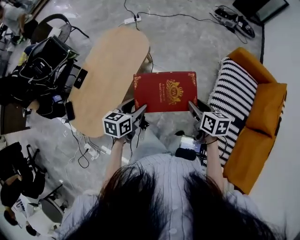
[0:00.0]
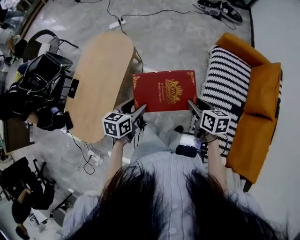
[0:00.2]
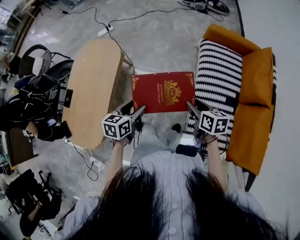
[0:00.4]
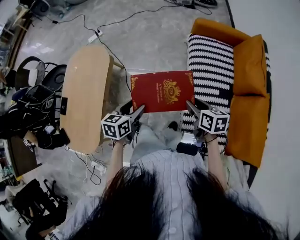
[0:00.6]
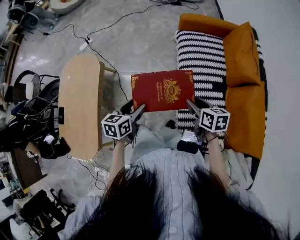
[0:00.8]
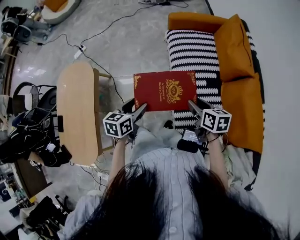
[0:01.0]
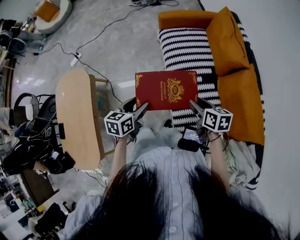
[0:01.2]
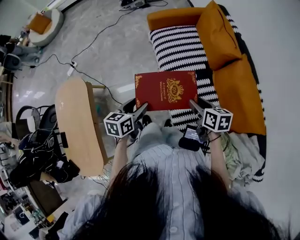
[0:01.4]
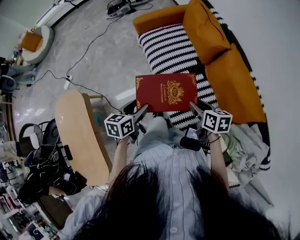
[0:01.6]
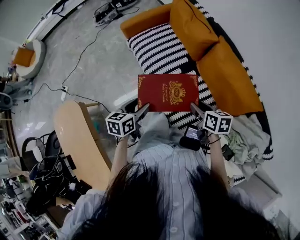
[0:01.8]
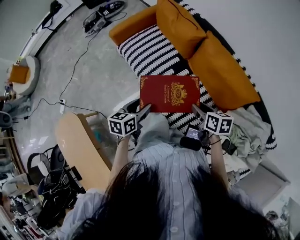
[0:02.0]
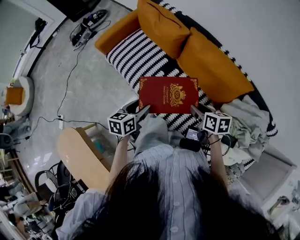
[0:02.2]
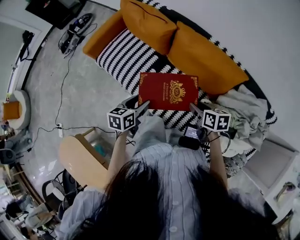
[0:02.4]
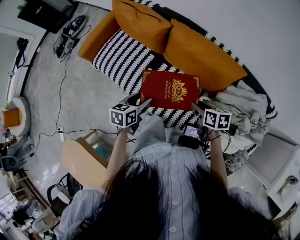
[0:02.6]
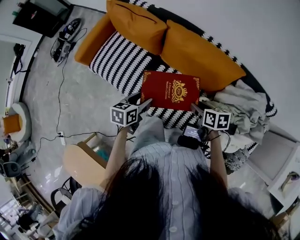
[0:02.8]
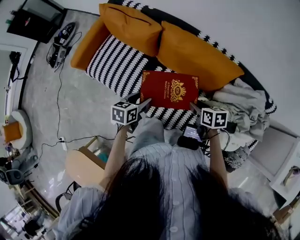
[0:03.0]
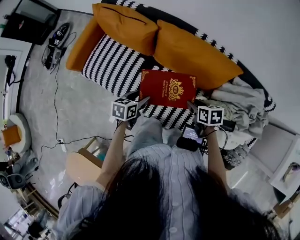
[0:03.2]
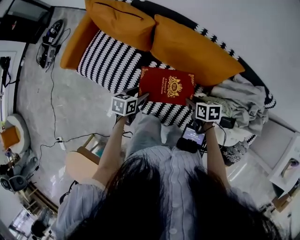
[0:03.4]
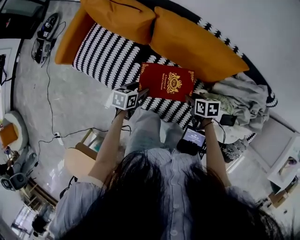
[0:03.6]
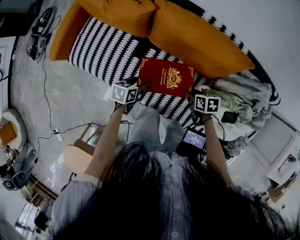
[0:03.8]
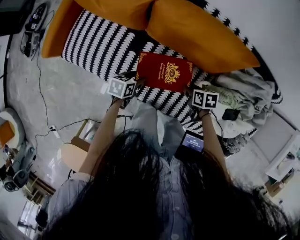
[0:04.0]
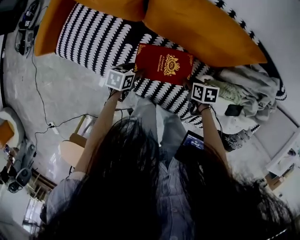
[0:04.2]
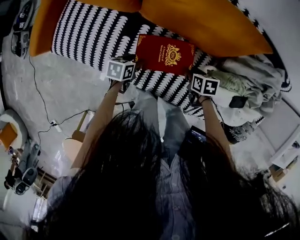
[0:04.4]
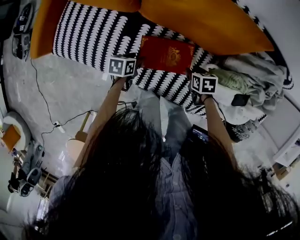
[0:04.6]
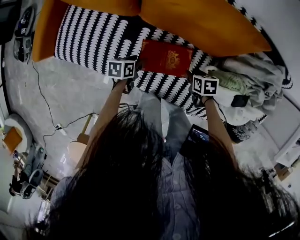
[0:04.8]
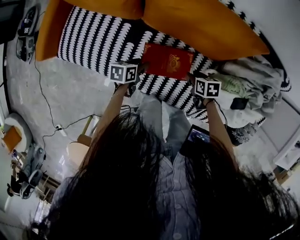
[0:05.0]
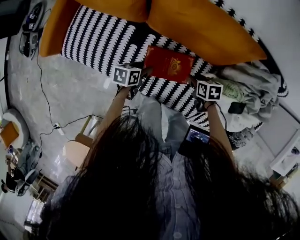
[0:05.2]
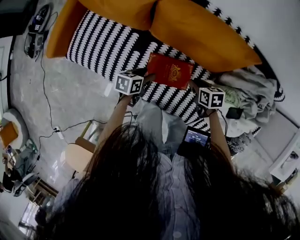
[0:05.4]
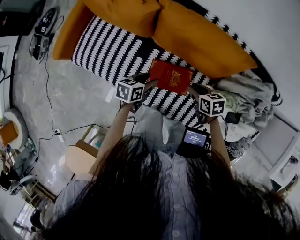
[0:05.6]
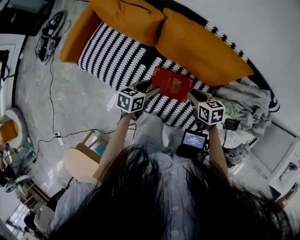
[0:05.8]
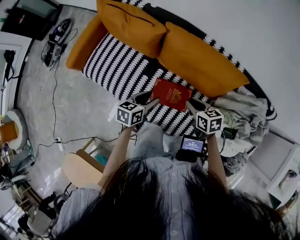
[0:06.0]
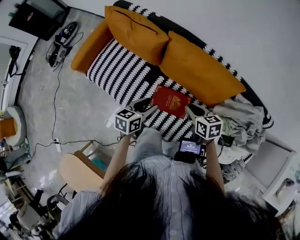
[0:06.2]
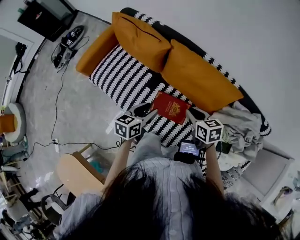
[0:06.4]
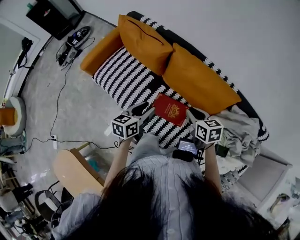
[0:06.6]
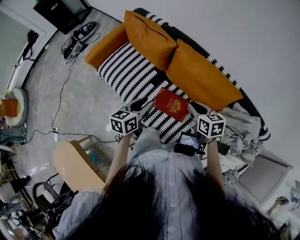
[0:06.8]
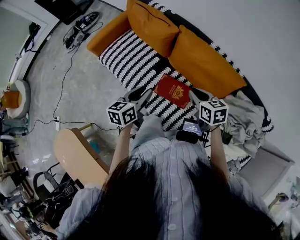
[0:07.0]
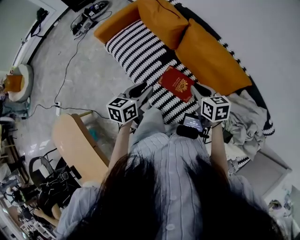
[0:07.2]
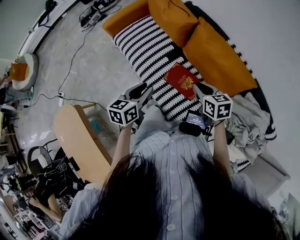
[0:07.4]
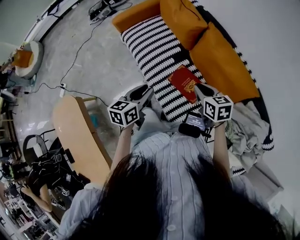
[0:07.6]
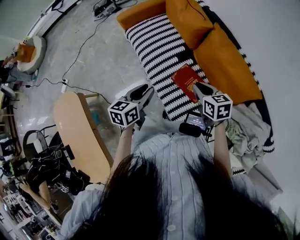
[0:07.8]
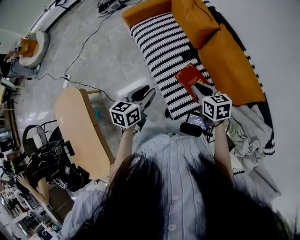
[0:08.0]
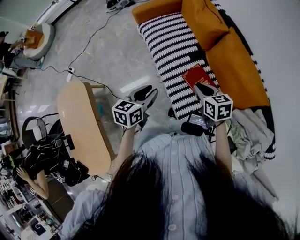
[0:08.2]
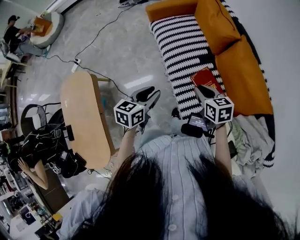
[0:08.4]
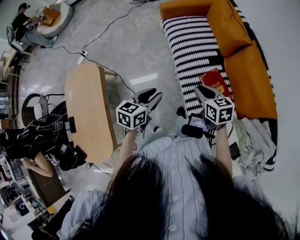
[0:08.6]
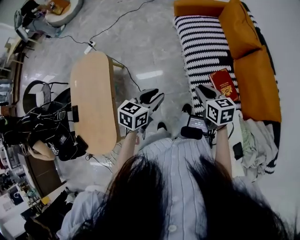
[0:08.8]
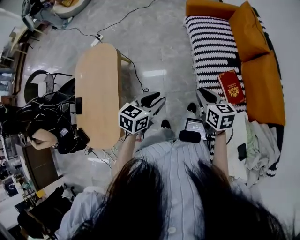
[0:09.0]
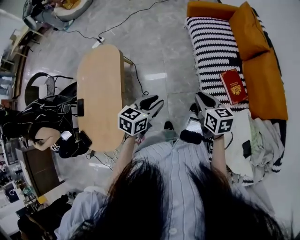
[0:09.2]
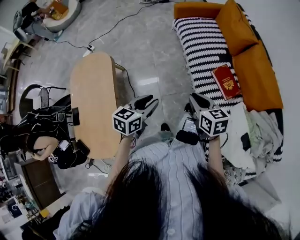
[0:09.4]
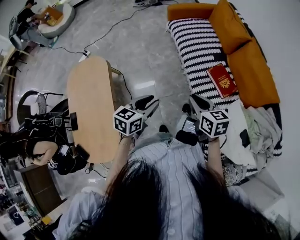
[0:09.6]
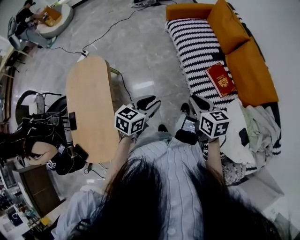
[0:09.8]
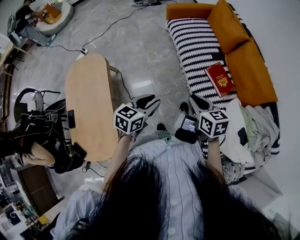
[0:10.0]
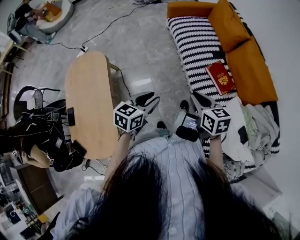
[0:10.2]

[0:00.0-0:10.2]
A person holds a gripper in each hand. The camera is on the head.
0:00.0 to 0:01.4: The right gripper ends up some 40 cm from where it was, and turns by some 40 degrees, while the left gripper changes place by about 35 cm, and swivels some 40 degrees.
0:01.4 to 0:03.0: The right gripper shifts by some 25 cm, and turns by about 40 degrees; the left gripper shifts by some 30 cm, and swivels roughly 50 degrees.
0:03.0 to 0:04.4: Both grippers travel together downward, approximately 25 cm. The left gripper rotates some 20 degrees.
0:04.4 to 0:05.8: The grippers both shift upward by roughly 20 cm. The right gripper rotates roughly 30 degrees.
0:05.8 to 0:07.2: The left gripper shifts some 20 cm upward and backward, and swivels roughly 40 degrees, while the right gripper travels upward by about 15 cm, and swivels roughly 20 degrees.
0:07.2 to 0:08.8: The right gripper shifts by approximately 30 cm, and changes its angle by some 30 degrees. Meanwhile the left gripper shifts by some 30 cm, and swivels approximately 20 degrees.
0:08.8 to 0:10.2: Both grippers travel together backward and to the left, approximately 15 cm.

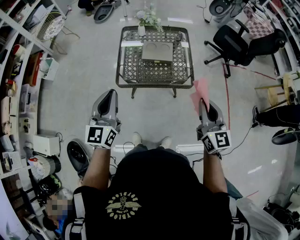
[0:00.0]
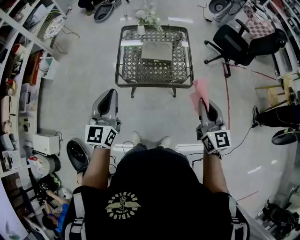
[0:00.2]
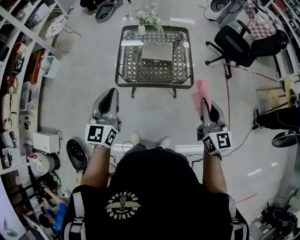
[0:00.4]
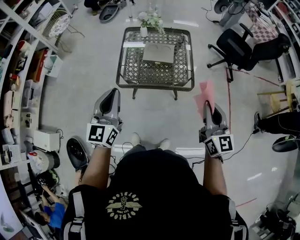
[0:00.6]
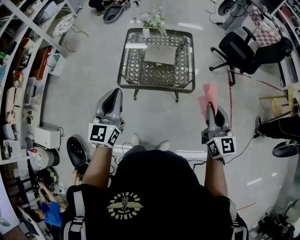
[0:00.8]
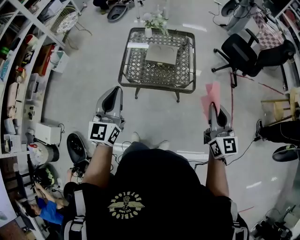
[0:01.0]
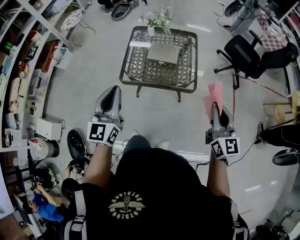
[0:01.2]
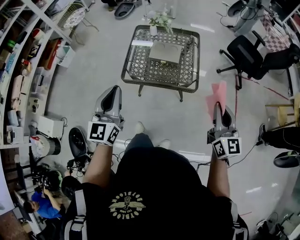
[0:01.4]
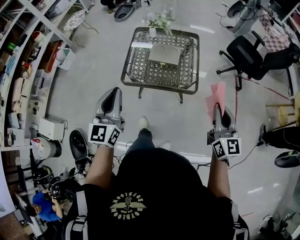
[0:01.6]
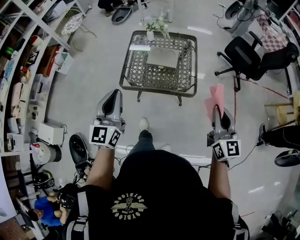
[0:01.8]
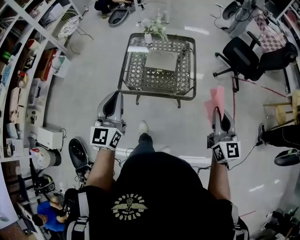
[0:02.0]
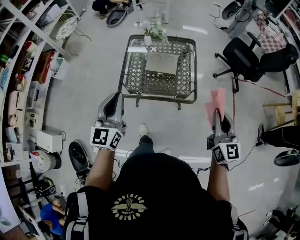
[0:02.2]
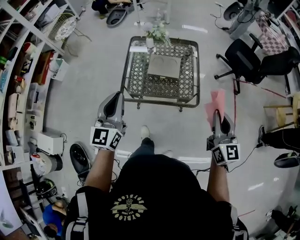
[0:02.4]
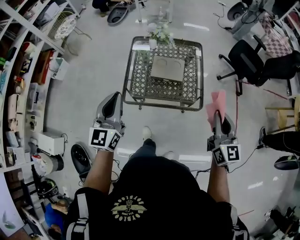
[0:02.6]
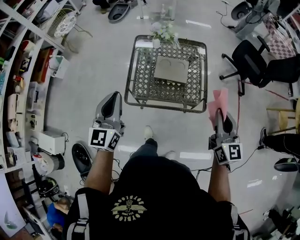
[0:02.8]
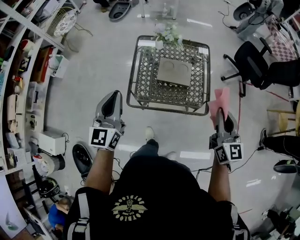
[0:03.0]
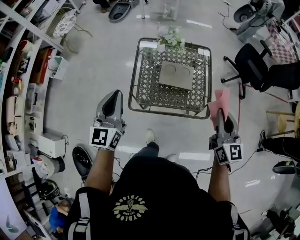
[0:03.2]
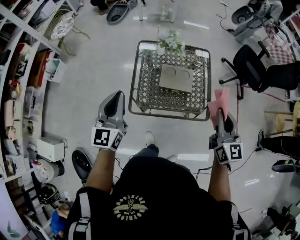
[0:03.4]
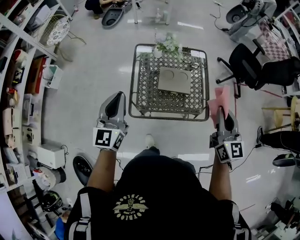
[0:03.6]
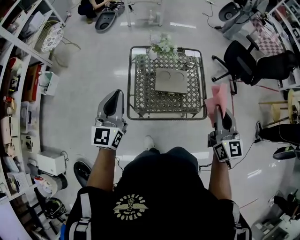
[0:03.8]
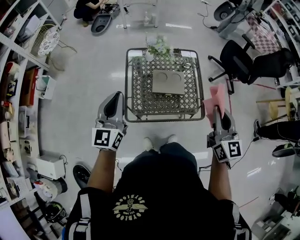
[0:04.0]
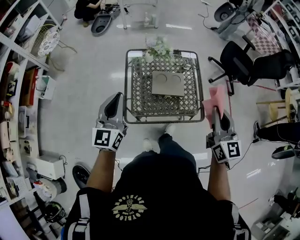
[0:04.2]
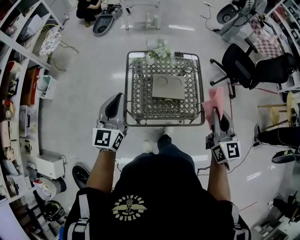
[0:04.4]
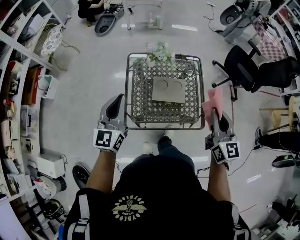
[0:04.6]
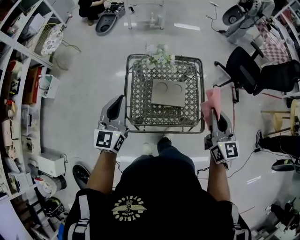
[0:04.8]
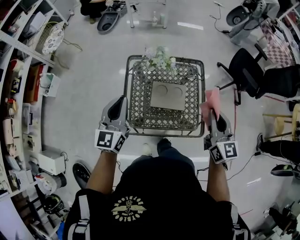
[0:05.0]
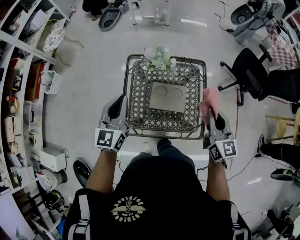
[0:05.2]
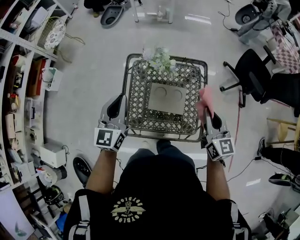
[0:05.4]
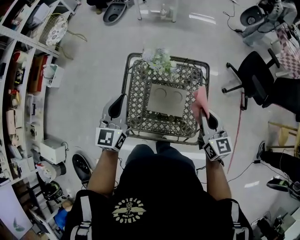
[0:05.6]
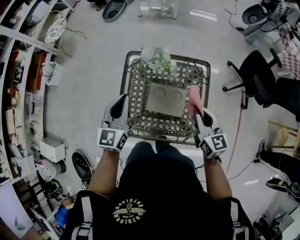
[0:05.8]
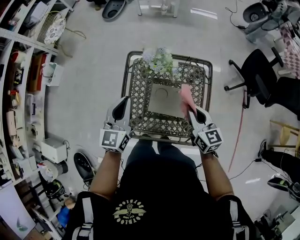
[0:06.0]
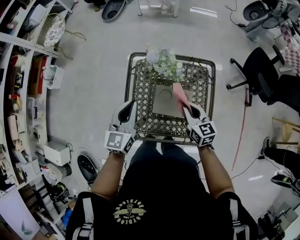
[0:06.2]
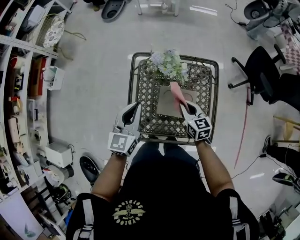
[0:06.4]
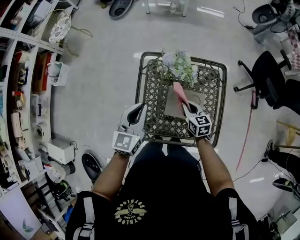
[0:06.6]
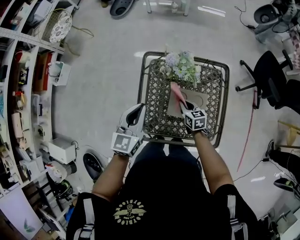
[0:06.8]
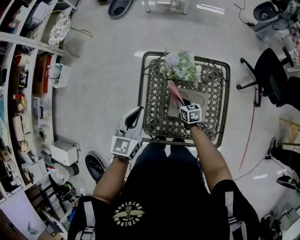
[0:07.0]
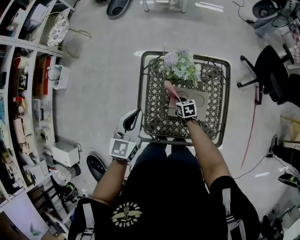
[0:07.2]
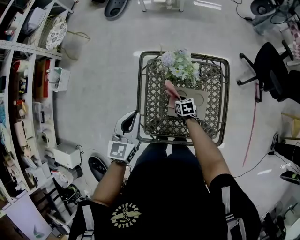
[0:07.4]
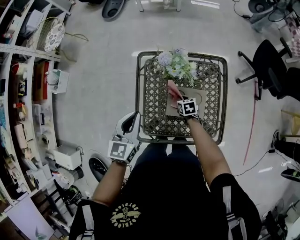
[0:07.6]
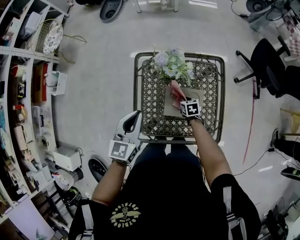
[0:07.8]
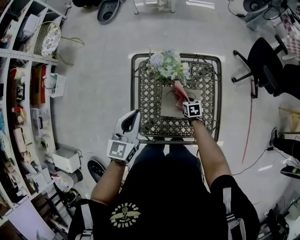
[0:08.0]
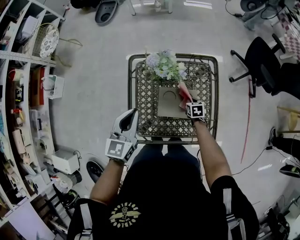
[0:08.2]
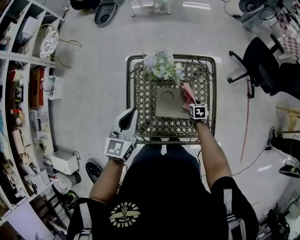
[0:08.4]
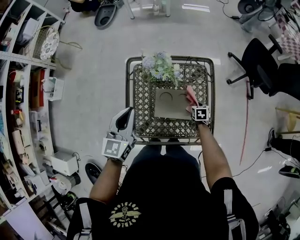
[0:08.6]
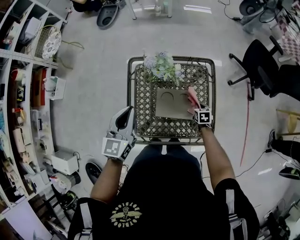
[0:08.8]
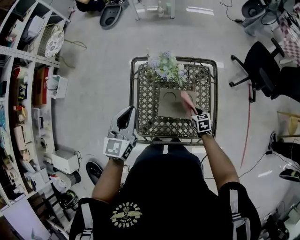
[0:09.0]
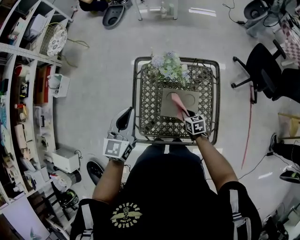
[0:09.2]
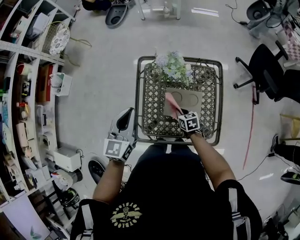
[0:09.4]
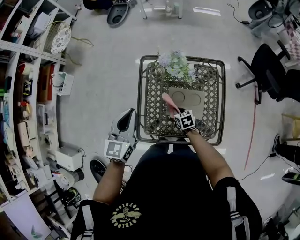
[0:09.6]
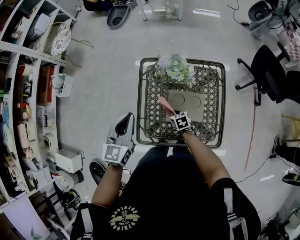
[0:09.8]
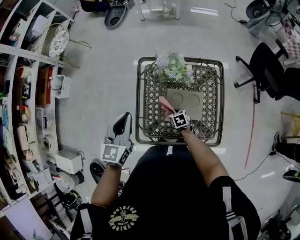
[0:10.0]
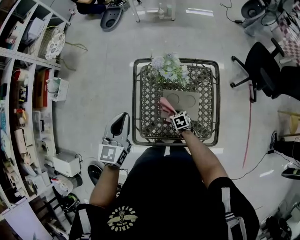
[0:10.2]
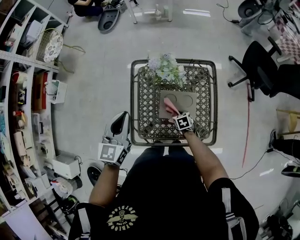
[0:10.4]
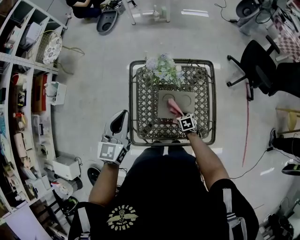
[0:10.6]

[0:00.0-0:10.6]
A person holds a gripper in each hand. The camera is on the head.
0:00.0 to 0:01.6: The left gripper goes about 10 cm to the right, while the right gripper heads to the right, covering roughly 10 cm.
0:01.6 to 0:03.0: The two grippers go about 25 cm forward and to the left.
0:03.0 to 0:04.6: Both grippers move forward, some 10 cm.
0:04.6 to 0:06.0: The right gripper shifts roughly 25 cm forward and downward, and changes its angle by some 30 degrees; the left gripper moves forward, downward and to the right, some 20 cm.
0:06.0 to 0:07.6: The right gripper goes some 30 cm downward, and tips its fingers downward by some 40 degrees; the left gripper goes some 10 cm to the left and downward.
0:07.6 to 0:09.0: The right gripper heads to the right, backward and upward, covering some 15 cm. Meanwhile the left gripper heads upward, covering roughly 5 cm.
0:09.0 to 0:10.6: The right gripper moves to the left and downward, about 10 cm.

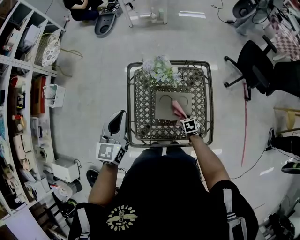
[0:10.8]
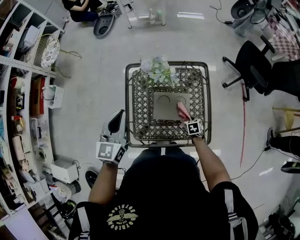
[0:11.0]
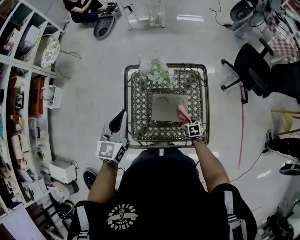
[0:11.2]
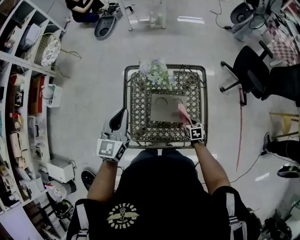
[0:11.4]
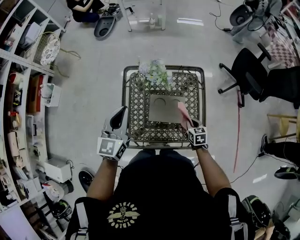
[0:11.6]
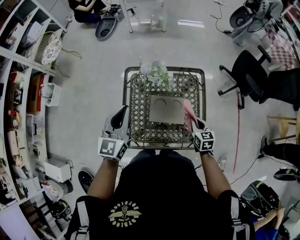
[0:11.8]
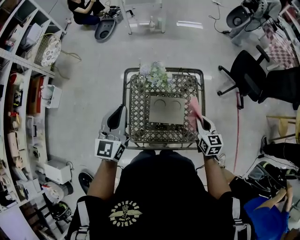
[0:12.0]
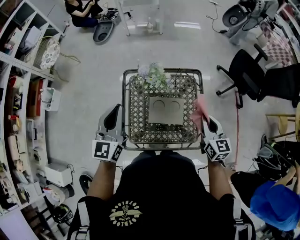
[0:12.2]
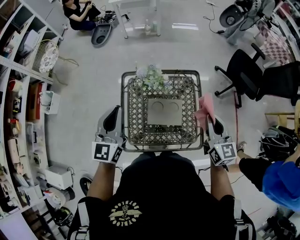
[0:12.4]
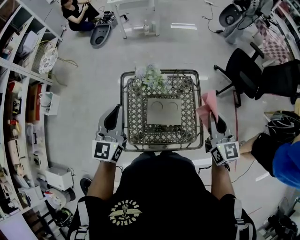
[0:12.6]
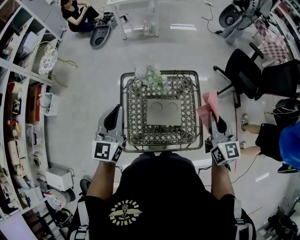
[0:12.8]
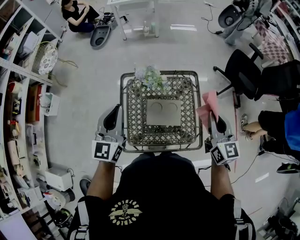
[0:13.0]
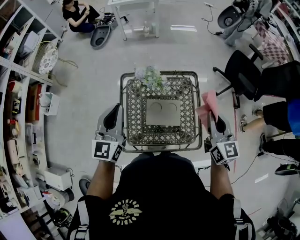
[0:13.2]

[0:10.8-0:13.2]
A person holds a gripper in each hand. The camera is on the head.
0:10.8 to 0:12.0: The right gripper shifts approximately 25 cm upward, and points its fingers about 40 degrees further upward, while the left gripper goes some 5 cm upward.
0:12.0 to 0:13.2: The right gripper travels upward by approximately 20 cm.
